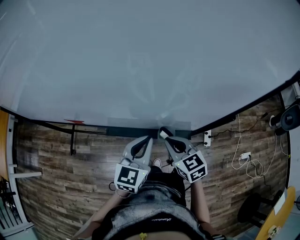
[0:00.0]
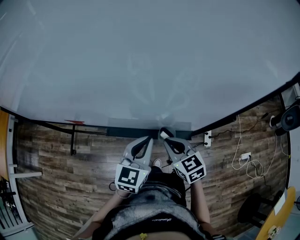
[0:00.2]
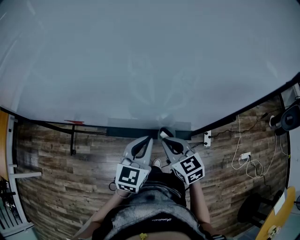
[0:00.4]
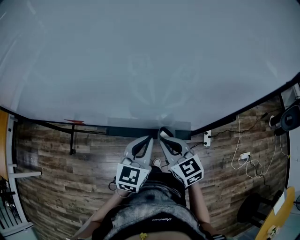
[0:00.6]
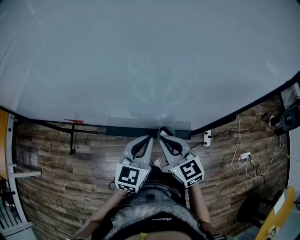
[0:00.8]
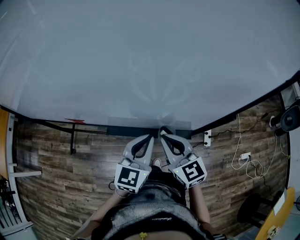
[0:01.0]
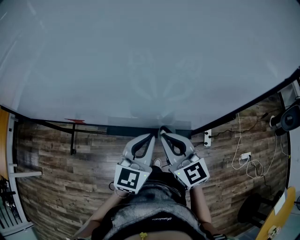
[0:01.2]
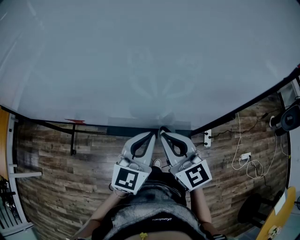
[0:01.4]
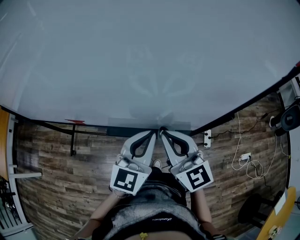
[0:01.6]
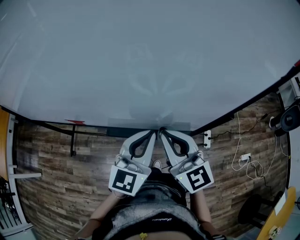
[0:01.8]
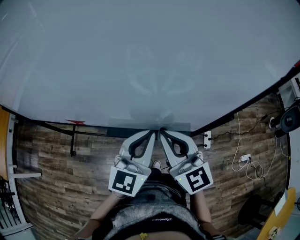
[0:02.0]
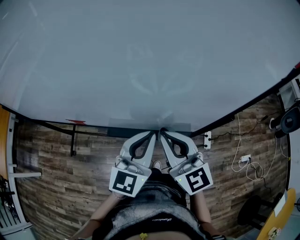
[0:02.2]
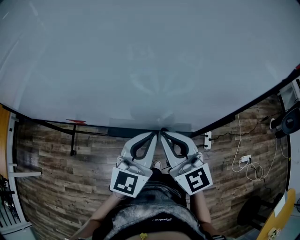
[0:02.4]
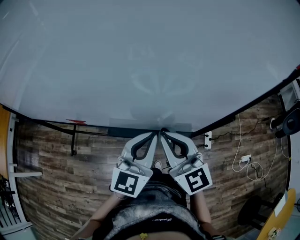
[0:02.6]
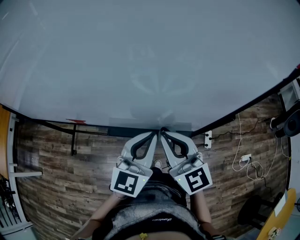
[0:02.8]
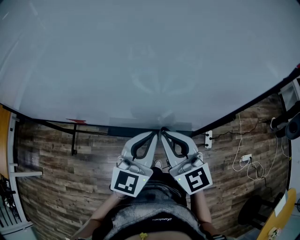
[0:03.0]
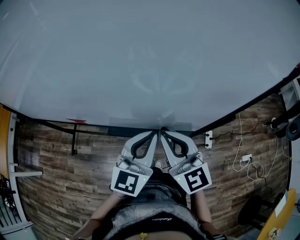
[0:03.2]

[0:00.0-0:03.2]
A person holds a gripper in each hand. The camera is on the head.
0:00.0 to 0:01.6: The left gripper moves upward, about 5 cm; the right gripper shifts roughly 15 cm upward, and swivels roughly 30 degrees.
0:01.6 to 0:03.2: The grippers stay close to where they were, moving slightly.

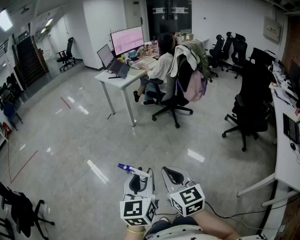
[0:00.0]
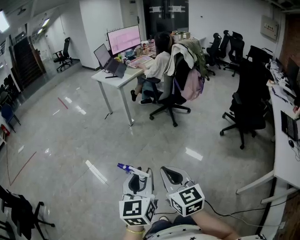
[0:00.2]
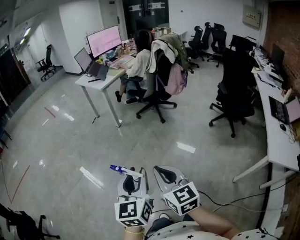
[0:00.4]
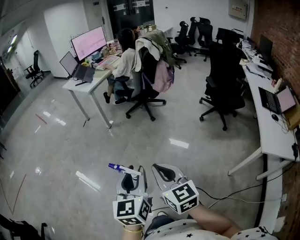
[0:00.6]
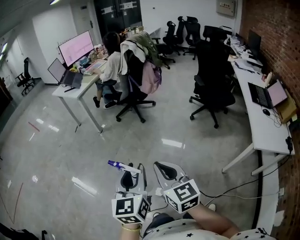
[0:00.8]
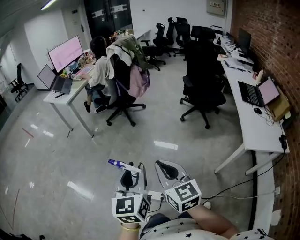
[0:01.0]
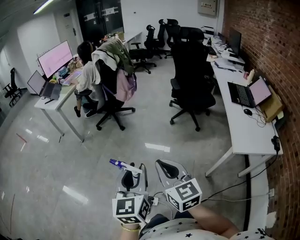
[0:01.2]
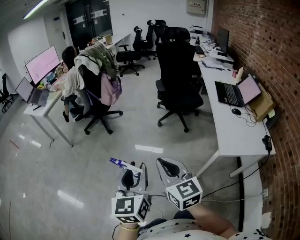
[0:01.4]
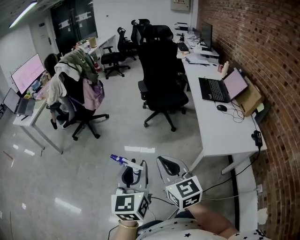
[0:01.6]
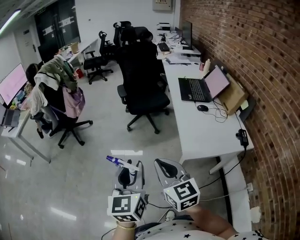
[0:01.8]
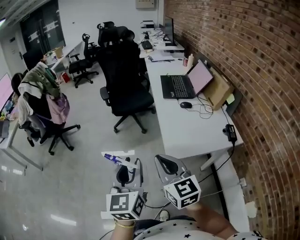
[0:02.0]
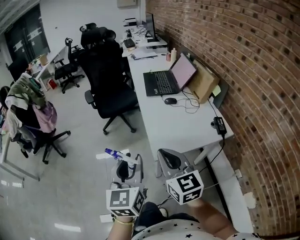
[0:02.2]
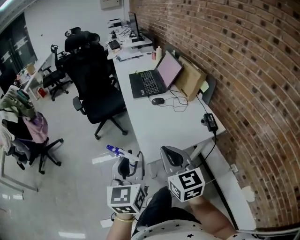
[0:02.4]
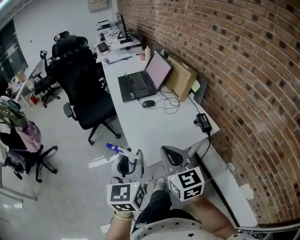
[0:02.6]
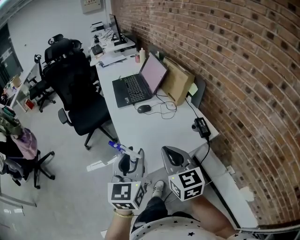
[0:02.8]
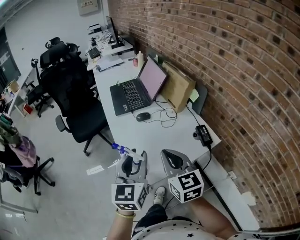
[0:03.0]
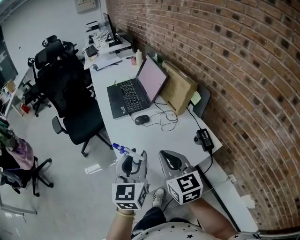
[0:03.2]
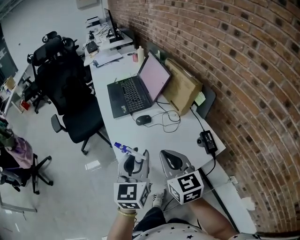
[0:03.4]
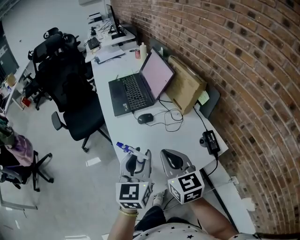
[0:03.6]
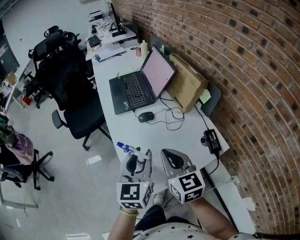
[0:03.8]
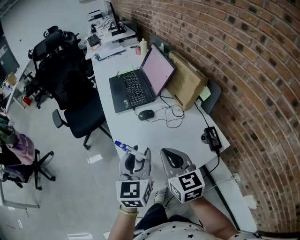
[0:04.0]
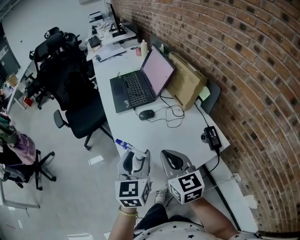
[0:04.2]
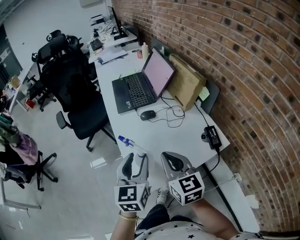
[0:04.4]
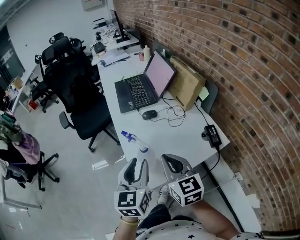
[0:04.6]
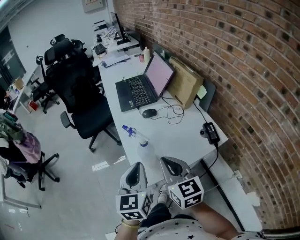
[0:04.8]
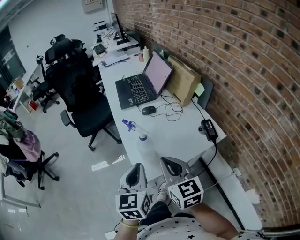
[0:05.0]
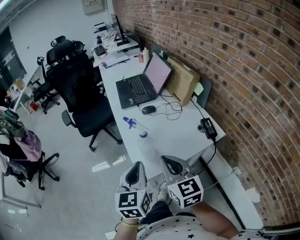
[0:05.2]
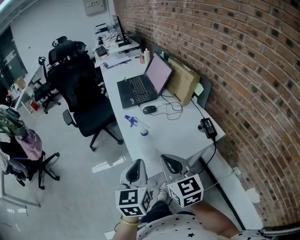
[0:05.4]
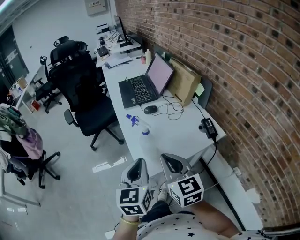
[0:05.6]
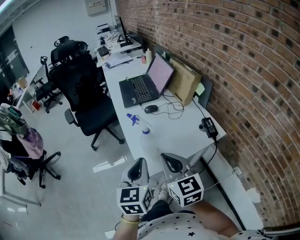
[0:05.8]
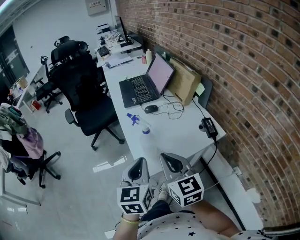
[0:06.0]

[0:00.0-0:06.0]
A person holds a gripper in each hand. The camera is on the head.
0:00.0 to 0:01.6: The two grippers travel together, roughly 50 cm. The right gripper changes its angle by roughly 30 degrees. The left gripper turns by some 30 degrees.
0:01.6 to 0:03.0: The two grippers travel together, roughly 50 cm. The left gripper turns by roughly 30 degrees, while the right gripper swivels roughly 30 degrees.
0:03.0 to 0:04.4: The left gripper is displaced downward and forward by approximately 10 cm. The right gripper changes place by roughly 5 cm.
0:04.4 to 0:06.0: The grippers both shift backward by about 10 cm. The left gripper closes its fingers.

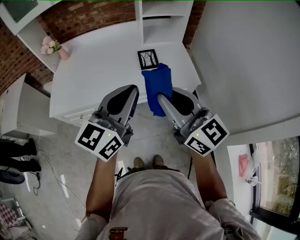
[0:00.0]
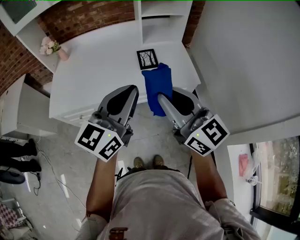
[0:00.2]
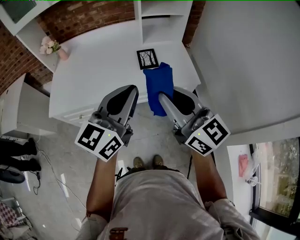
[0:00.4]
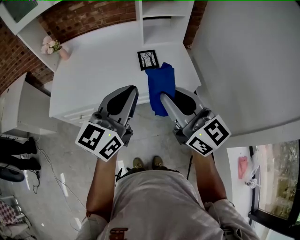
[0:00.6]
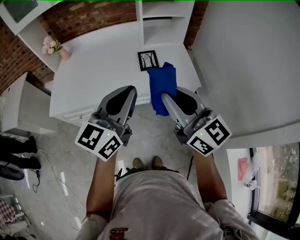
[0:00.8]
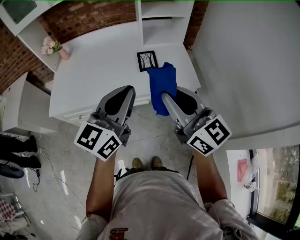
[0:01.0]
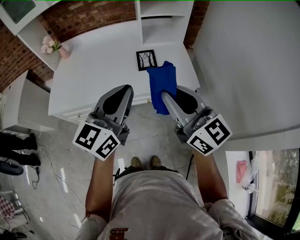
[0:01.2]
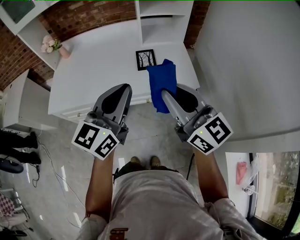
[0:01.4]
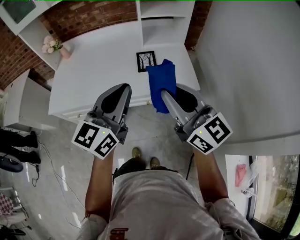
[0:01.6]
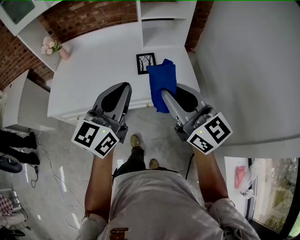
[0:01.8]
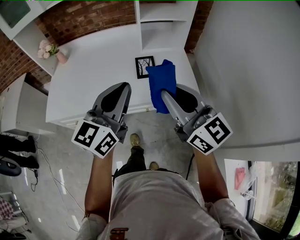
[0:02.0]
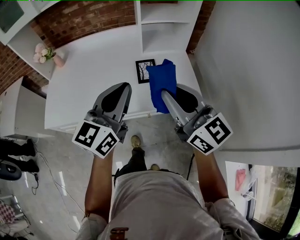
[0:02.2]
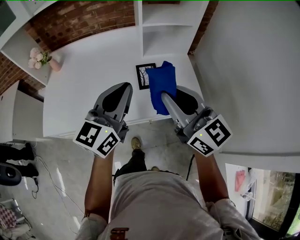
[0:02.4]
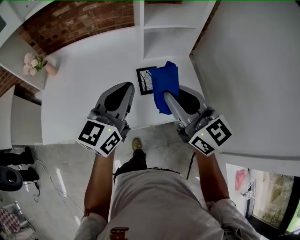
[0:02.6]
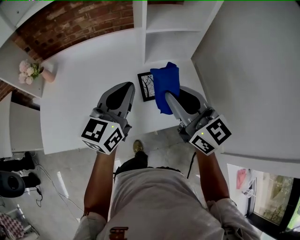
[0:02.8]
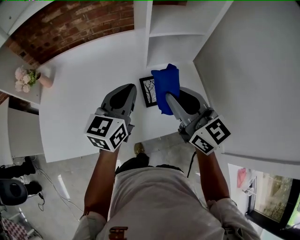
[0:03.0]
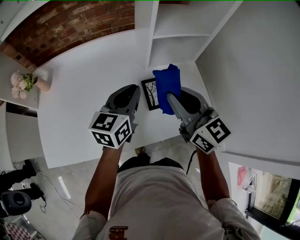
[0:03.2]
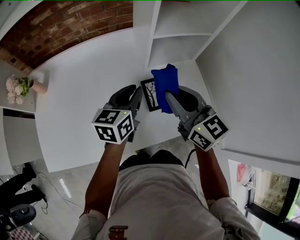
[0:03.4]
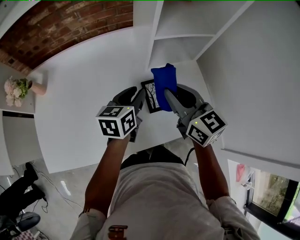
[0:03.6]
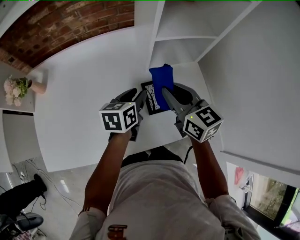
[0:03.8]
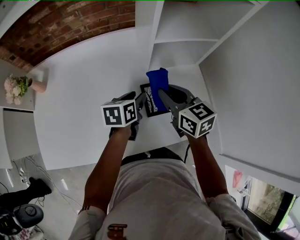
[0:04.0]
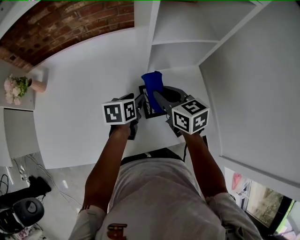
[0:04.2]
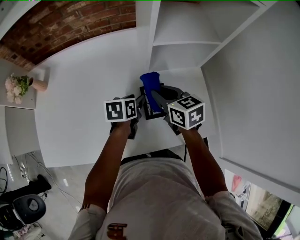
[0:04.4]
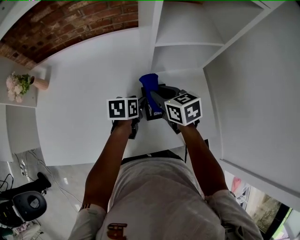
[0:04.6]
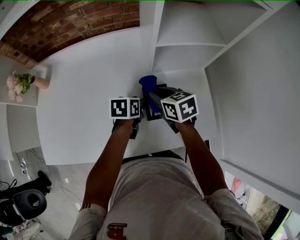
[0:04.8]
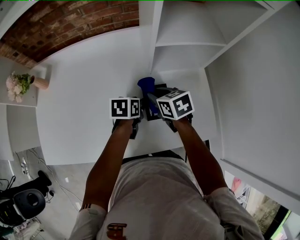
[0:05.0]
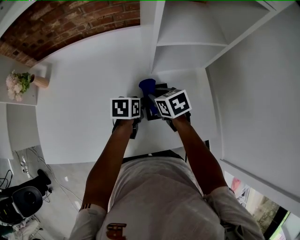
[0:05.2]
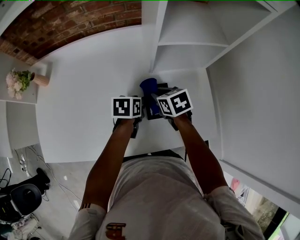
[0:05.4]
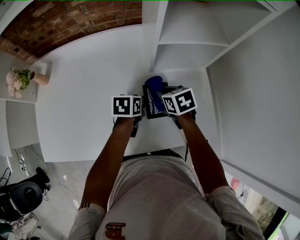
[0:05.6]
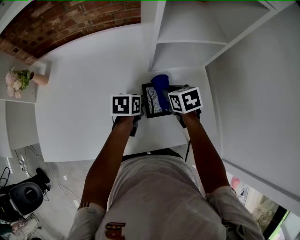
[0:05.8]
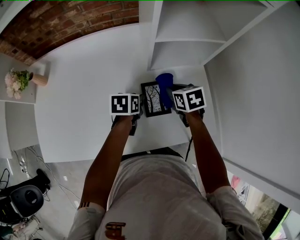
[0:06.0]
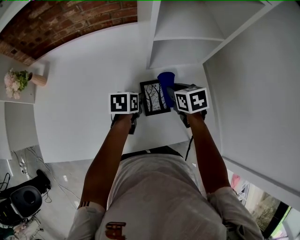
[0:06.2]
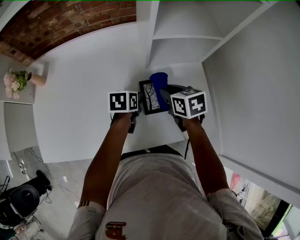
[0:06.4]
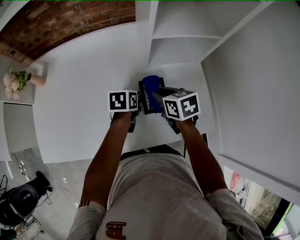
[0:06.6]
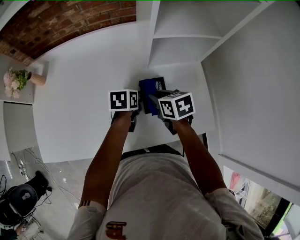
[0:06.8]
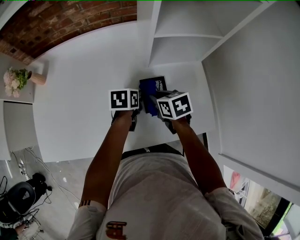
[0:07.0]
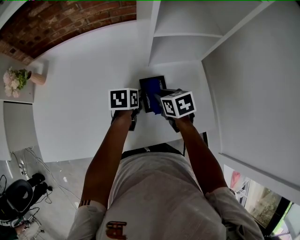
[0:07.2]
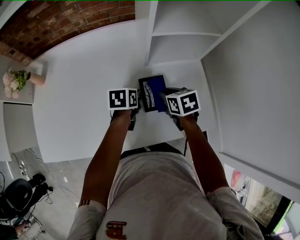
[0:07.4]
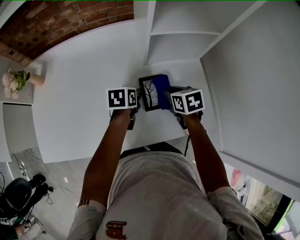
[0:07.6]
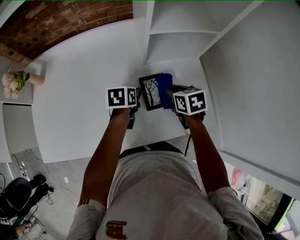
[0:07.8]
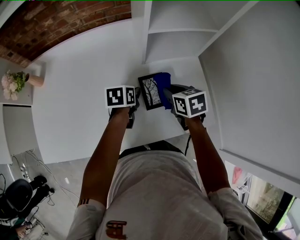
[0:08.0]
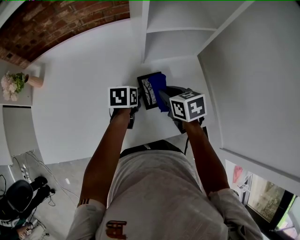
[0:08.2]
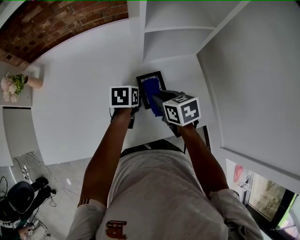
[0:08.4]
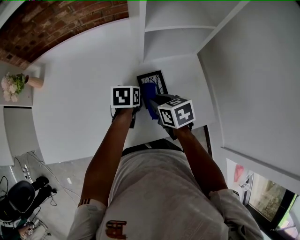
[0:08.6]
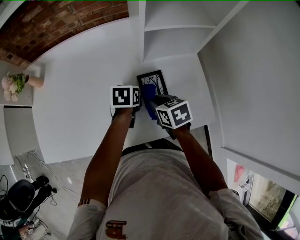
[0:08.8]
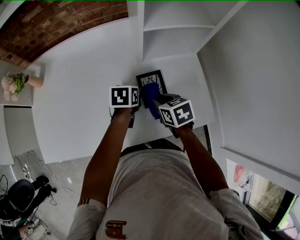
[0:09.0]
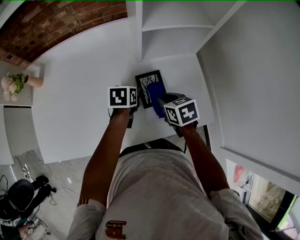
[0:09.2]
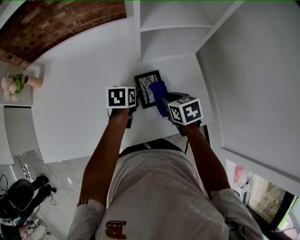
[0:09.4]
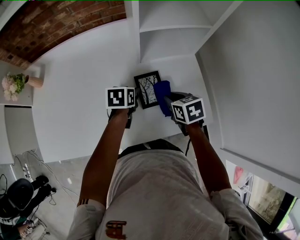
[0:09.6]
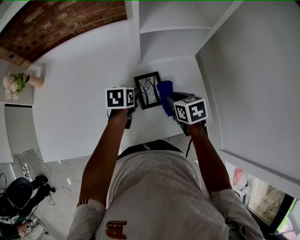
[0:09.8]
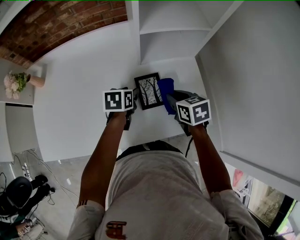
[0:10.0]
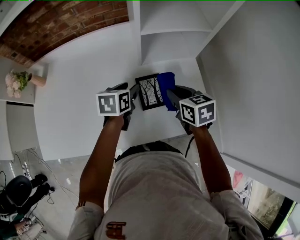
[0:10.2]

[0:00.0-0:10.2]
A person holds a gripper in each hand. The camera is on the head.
0:00.0 to 0:01.4: The right gripper travels to the right by approximately 5 cm.
0:01.4 to 0:03.0: Both grippers move forward, about 30 cm.
0:03.0 to 0:04.4: The grippers both shift downward and forward by approximately 20 cm. The right gripper turns by about 30 degrees. Meanwhile the left gripper tilts its fingers about 40 degrees downward, and opens up.
0:04.4 to 0:05.8: The right gripper is displaced downward by approximately 10 cm, and changes its angle by some 20 degrees.
0:05.8 to 0:07.2: The right gripper changes place by some 5 cm.
0:07.2 to 0:08.8: The right gripper changes place by approximately 5 cm.
0:08.8 to 0:10.2: The right gripper travels to the right and upward by about 10 cm. Meanwhile the left gripper heads upward, covering approximately 5 cm.

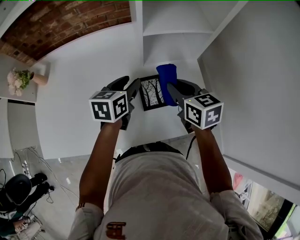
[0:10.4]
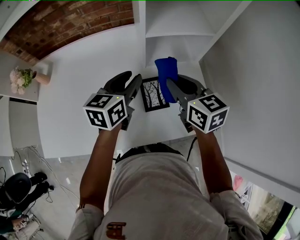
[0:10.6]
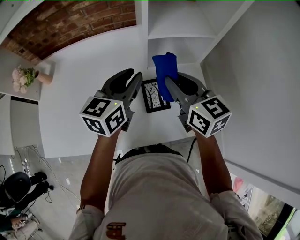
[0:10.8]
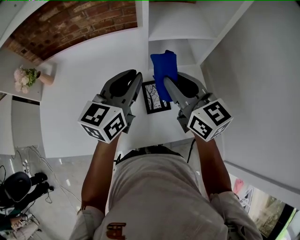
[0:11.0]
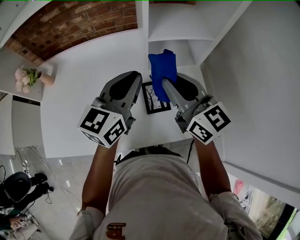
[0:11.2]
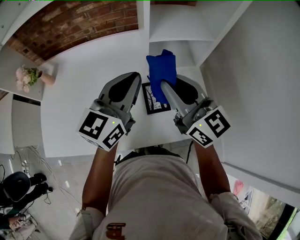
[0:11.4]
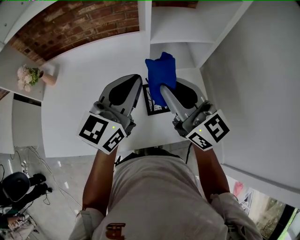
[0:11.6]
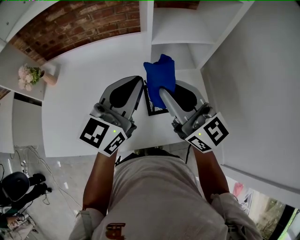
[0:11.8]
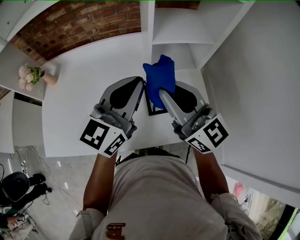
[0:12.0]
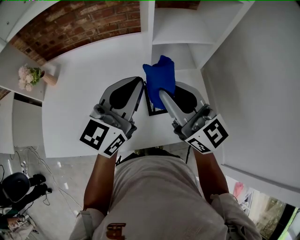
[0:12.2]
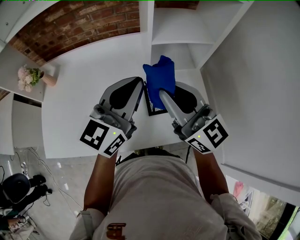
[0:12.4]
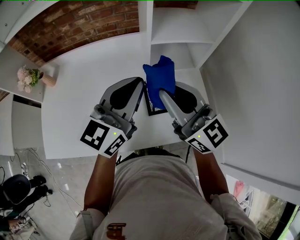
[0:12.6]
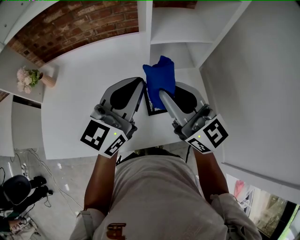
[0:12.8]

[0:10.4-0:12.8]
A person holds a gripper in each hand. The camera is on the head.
0:10.4 to 0:11.6: Both grippers travel together upward, about 15 cm. The left gripper tilts its fingers about 30 degrees upward, and closes. Meanwhile the right gripper tilts its fingers some 40 degrees upward.
0:11.6 to 0:12.8: There are only small adjustments of the grippers.

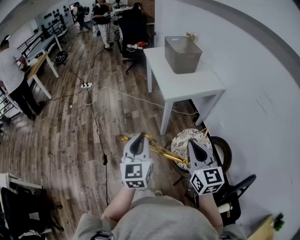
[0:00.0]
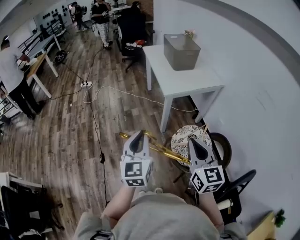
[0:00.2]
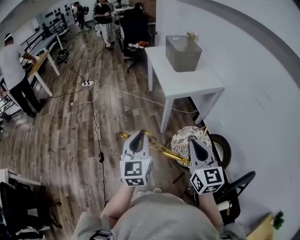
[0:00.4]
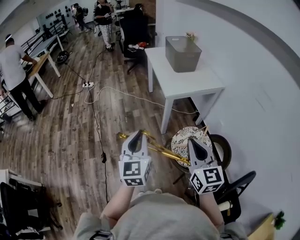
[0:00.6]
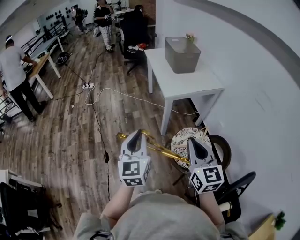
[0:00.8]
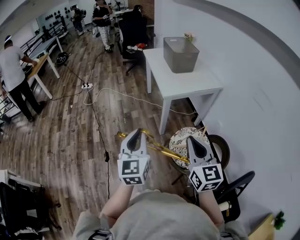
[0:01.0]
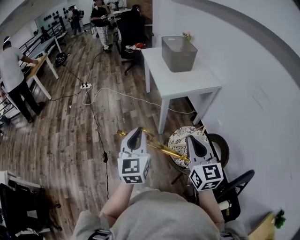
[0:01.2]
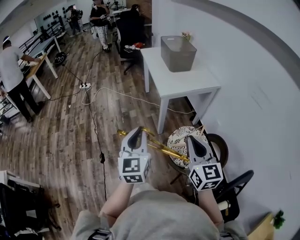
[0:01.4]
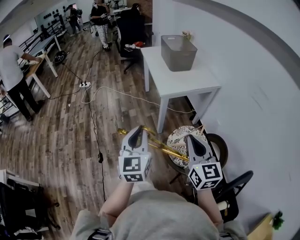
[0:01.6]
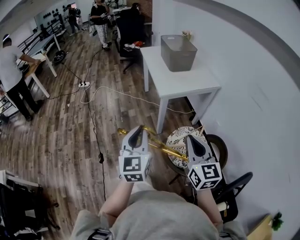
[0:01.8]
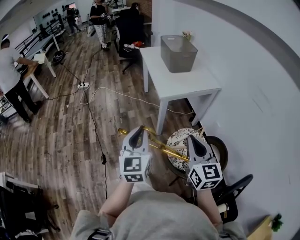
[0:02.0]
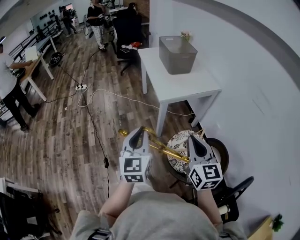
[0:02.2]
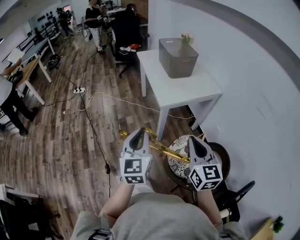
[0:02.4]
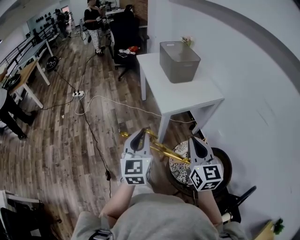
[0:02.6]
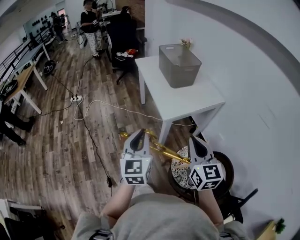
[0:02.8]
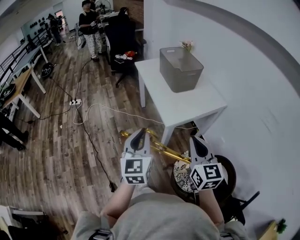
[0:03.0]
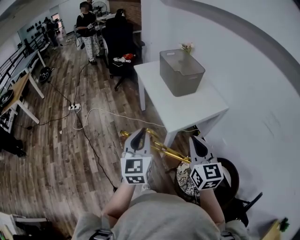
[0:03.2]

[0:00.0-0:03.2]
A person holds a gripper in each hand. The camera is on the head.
0:00.0 to 0:01.6: There are only small adjustments of the grippers.
0:01.6 to 0:03.2: Both grippers move forward, approximately 30 cm.
